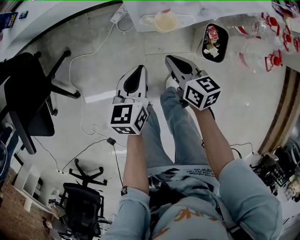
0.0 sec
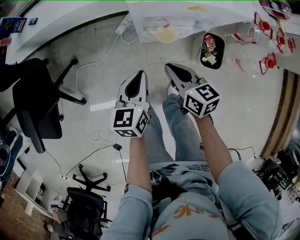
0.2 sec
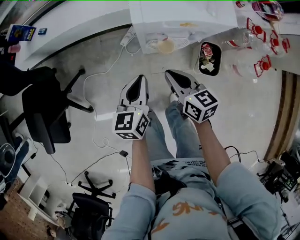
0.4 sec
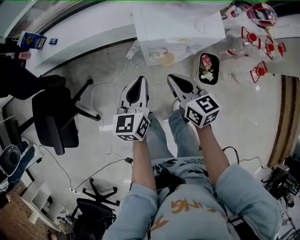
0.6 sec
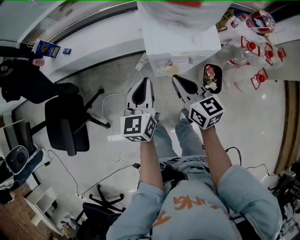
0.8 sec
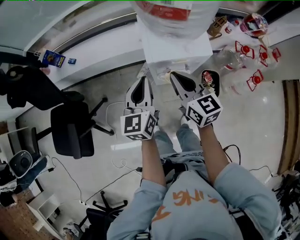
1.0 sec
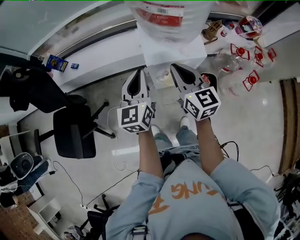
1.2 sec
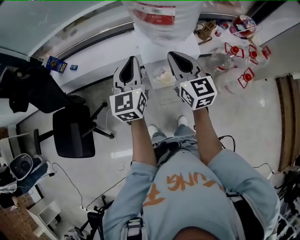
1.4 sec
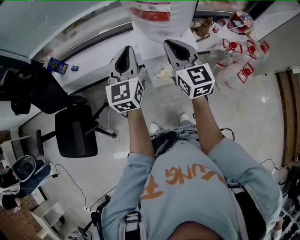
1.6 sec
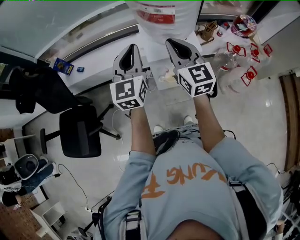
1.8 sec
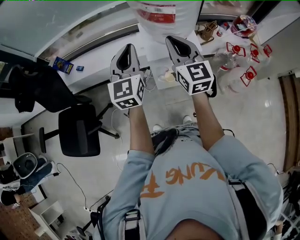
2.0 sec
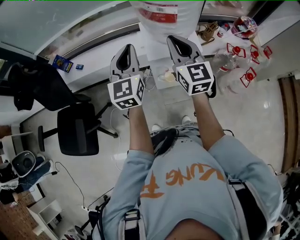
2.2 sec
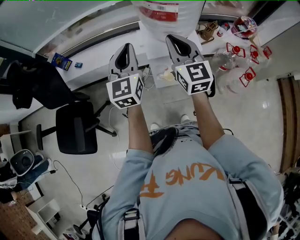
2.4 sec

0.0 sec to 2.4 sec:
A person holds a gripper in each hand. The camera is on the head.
0.0 sec to 1.2 sec: The two grippers go roughly 40 cm upward. The right gripper rotates approximately 30 degrees. The left gripper rotates about 30 degrees.
1.2 sec to 2.4 sec: Both grippers travel together upward, approximately 10 cm.

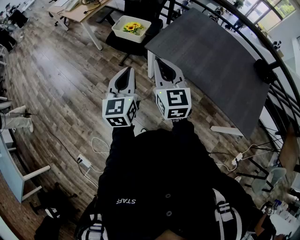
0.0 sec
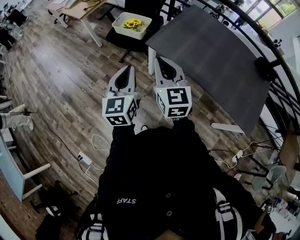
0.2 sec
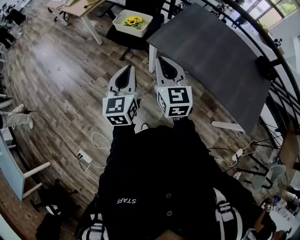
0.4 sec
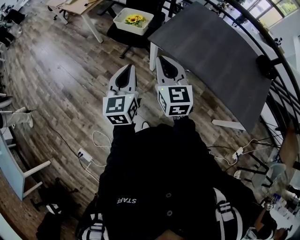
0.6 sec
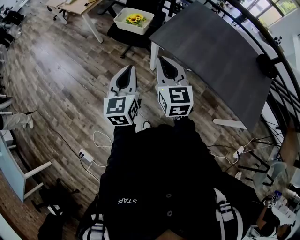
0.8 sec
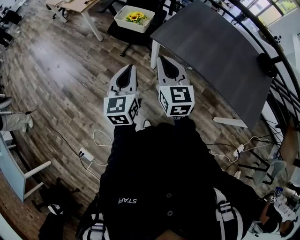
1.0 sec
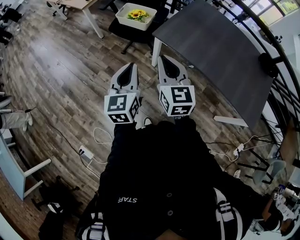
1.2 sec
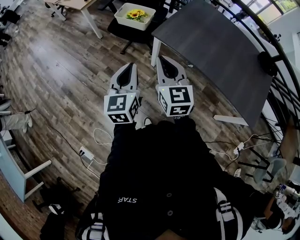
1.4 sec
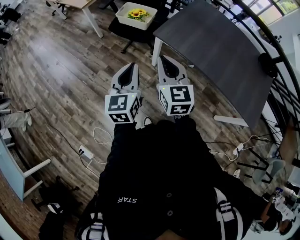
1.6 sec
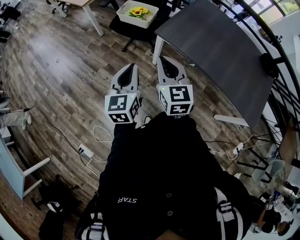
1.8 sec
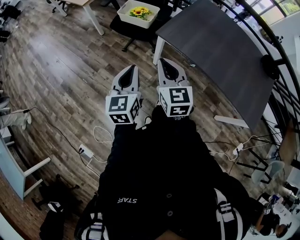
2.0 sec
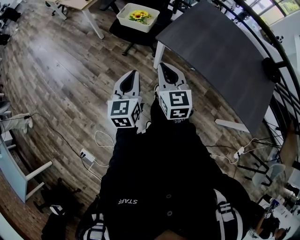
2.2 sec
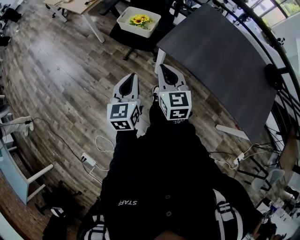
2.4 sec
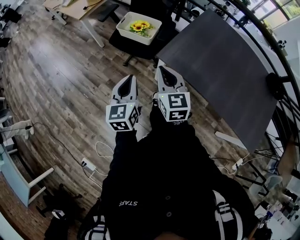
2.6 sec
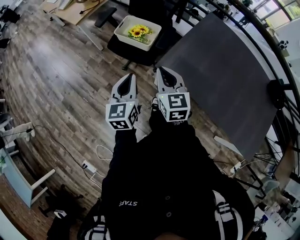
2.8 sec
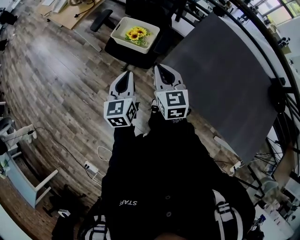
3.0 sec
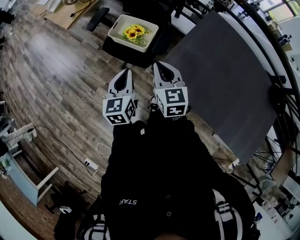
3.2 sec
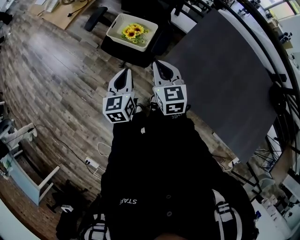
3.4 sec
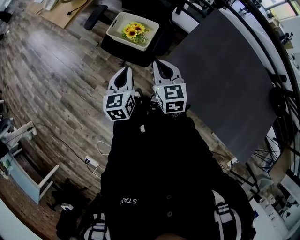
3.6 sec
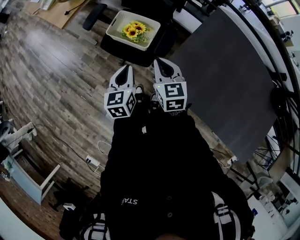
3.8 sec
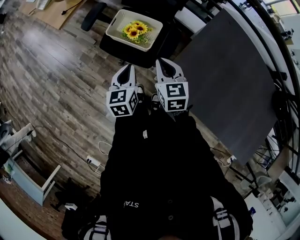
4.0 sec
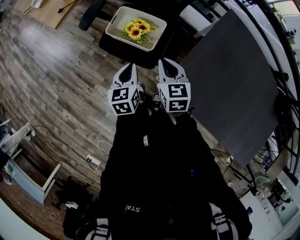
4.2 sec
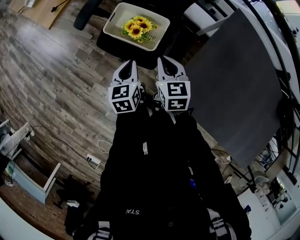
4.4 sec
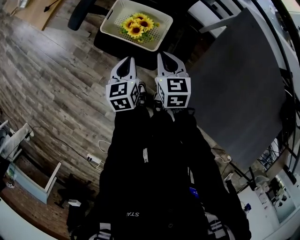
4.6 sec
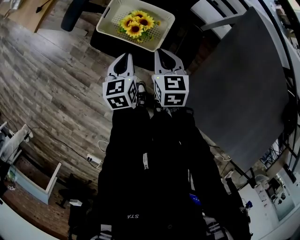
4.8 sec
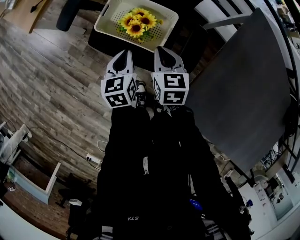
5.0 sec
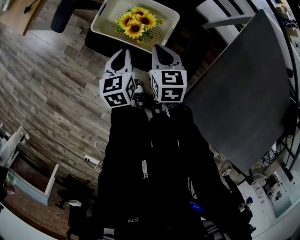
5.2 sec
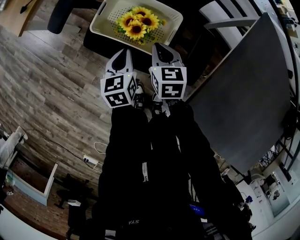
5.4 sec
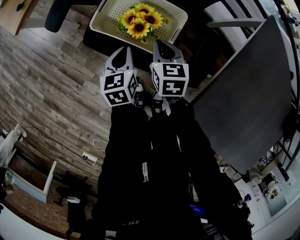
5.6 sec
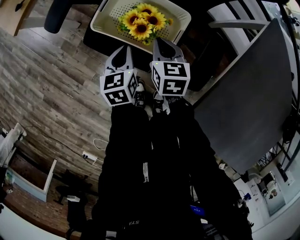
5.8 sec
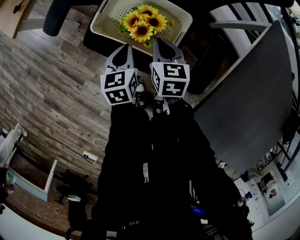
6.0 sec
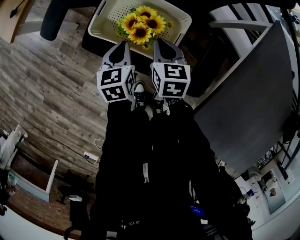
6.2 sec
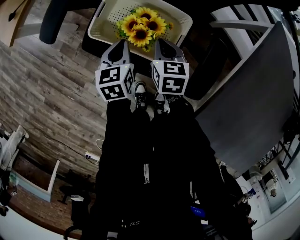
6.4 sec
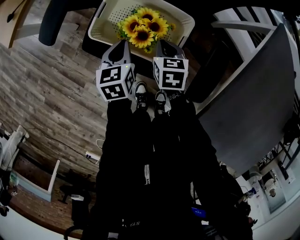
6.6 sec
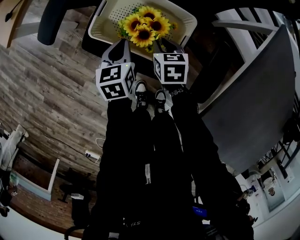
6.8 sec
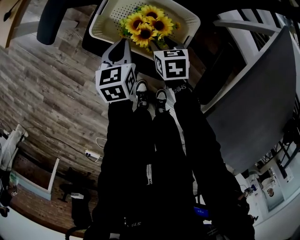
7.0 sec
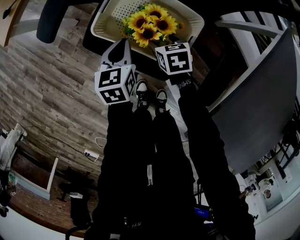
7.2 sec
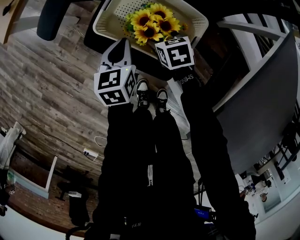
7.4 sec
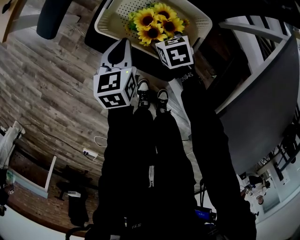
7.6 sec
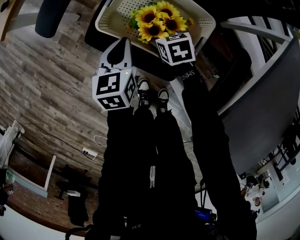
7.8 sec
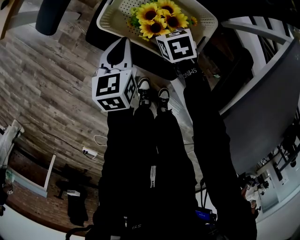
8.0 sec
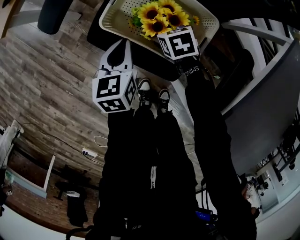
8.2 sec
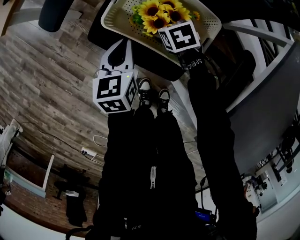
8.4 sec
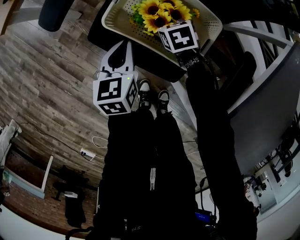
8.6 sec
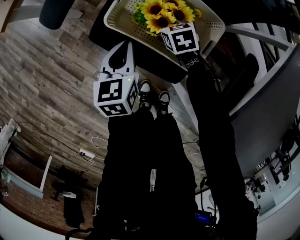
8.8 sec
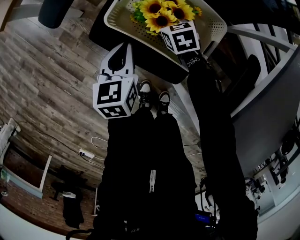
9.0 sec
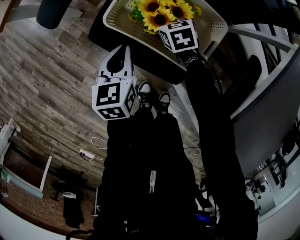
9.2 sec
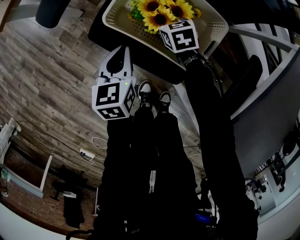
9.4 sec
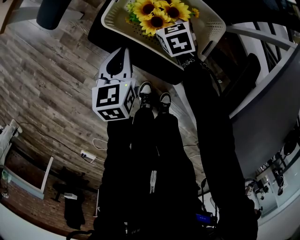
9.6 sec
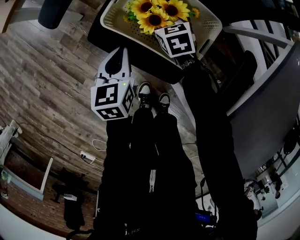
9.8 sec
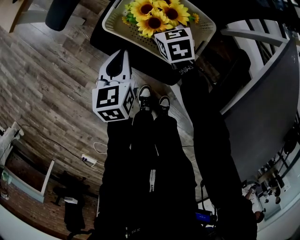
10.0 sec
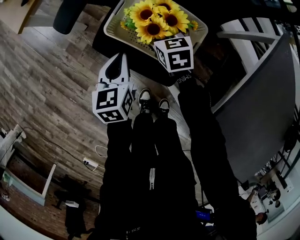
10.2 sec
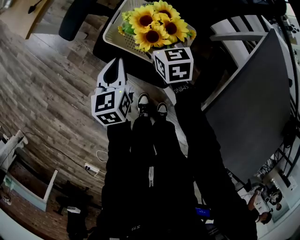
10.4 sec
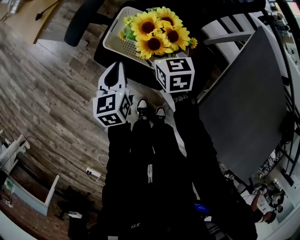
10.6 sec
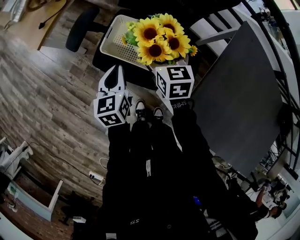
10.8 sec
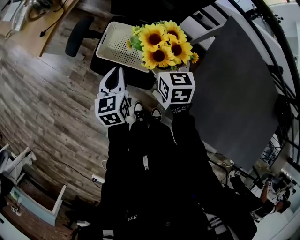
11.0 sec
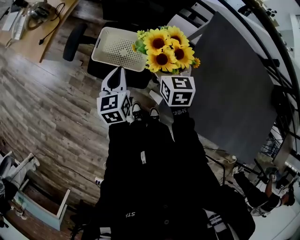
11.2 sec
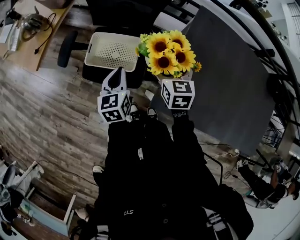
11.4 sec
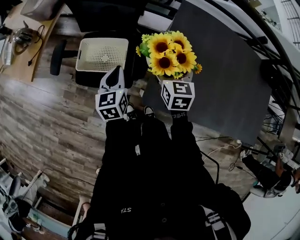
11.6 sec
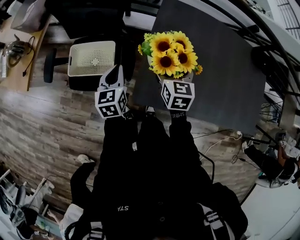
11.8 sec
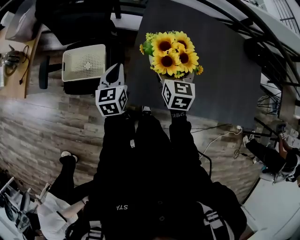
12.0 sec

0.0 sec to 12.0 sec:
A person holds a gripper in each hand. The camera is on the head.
0.0 sec to 1.6 sec: The two grippers go roughly 5 cm to the left.
1.6 sec to 3.0 sec: Both grippers travel together forward, roughly 35 cm.
3.0 sec to 4.4 sec: The grippers both shift forward and downward by some 30 cm.
4.4 sec to 6.0 sec: The two grippers go some 25 cm downward and forward.
6.0 sec to 7.6 sec: The right gripper moves downward, some 15 cm, rotates roughly 30 degrees, and opens its fingers, while the left gripper ends up approximately 5 cm from where it was.
7.6 sec to 9.0 sec: The right gripper shifts some 5 cm forward.
9.0 sec to 10.4 sec: The right gripper travels upward by roughly 20 cm, and changes its angle by about 20 degrees. Meanwhile the left gripper shifts approximately 10 cm upward.
10.4 sec to 12.0 sec: The right gripper changes place by approximately 60 cm, and swivels approximately 50 degrees; the left gripper moves about 40 cm, and changes its angle by approximately 30 degrees.

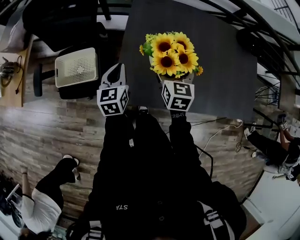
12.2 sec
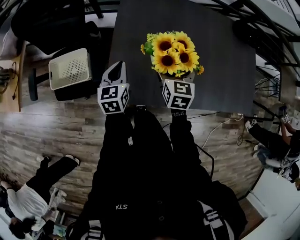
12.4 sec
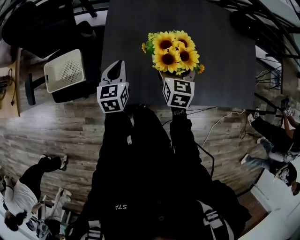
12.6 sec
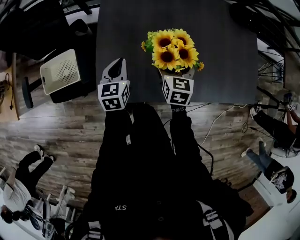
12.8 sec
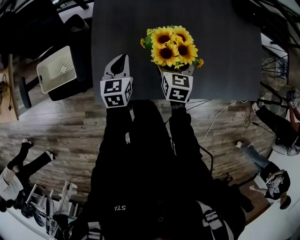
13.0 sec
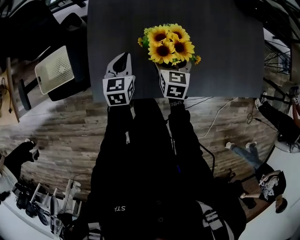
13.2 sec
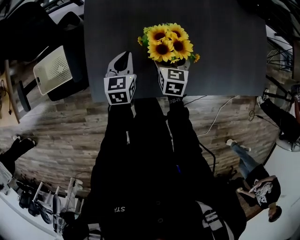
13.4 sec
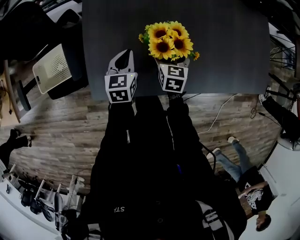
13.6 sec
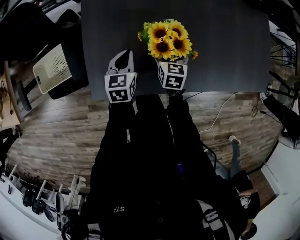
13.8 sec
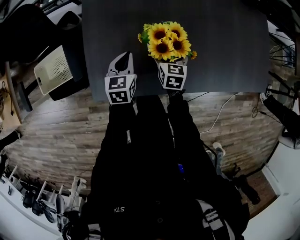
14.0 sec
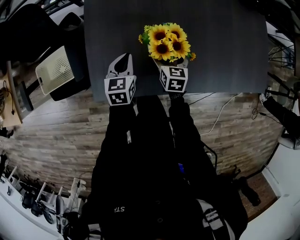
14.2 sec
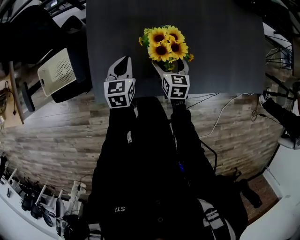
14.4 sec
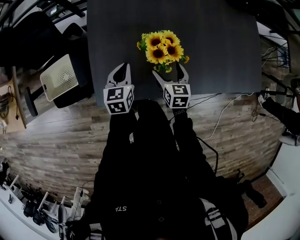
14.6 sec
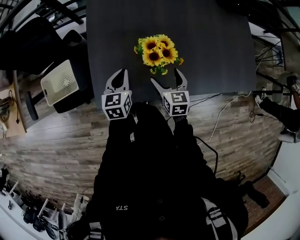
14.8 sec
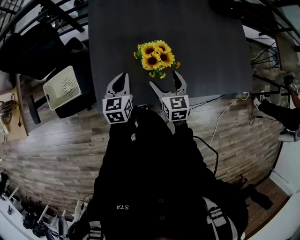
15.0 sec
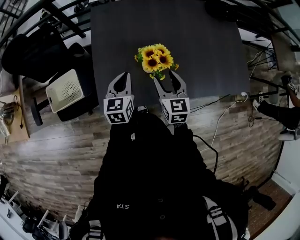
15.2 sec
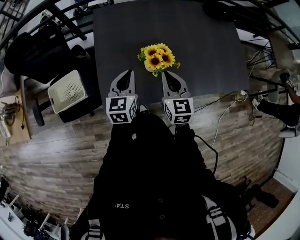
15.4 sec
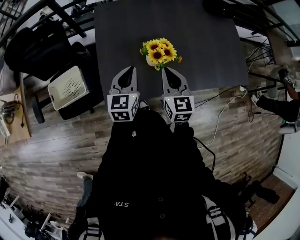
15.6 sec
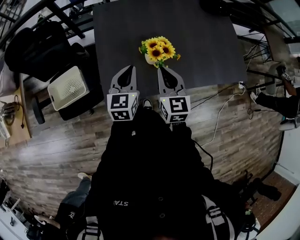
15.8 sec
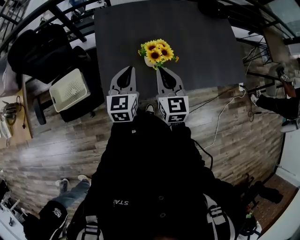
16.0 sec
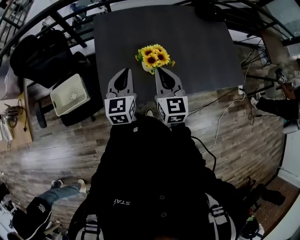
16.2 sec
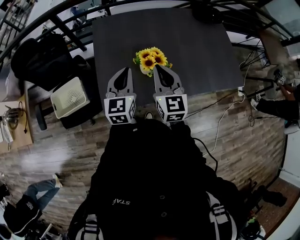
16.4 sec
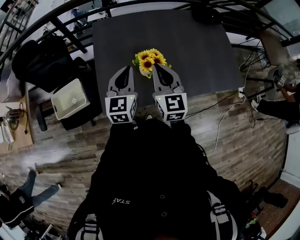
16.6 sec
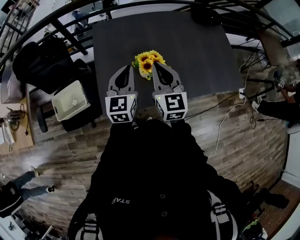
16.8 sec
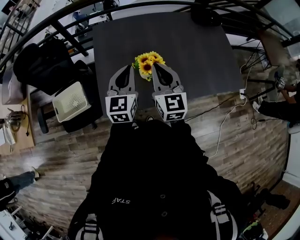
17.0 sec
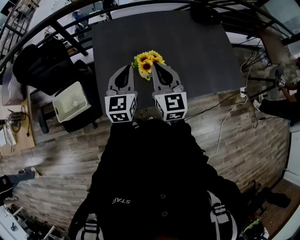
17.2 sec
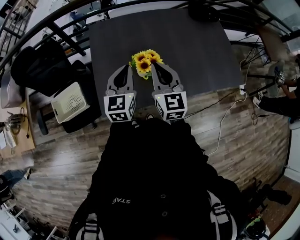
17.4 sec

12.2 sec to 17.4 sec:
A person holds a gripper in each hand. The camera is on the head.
12.2 sec to 14.0 sec: The left gripper is displaced to the right and downward by some 25 cm, and rotates roughly 20 degrees, while the right gripper shifts approximately 30 cm downward and to the right.
14.0 sec to 15.6 sec: The right gripper moves upward and backward, roughly 30 cm, swivels about 20 degrees, and closes up. Meanwhile the left gripper goes roughly 20 cm upward.
15.6 sec to 17.4 sec: The right gripper is displaced upward by roughly 10 cm. Meanwhile the left gripper is displaced upward and to the right by approximately 10 cm.

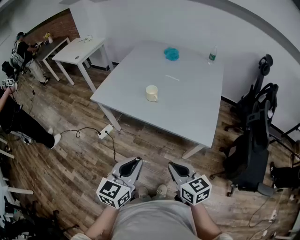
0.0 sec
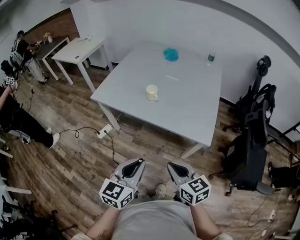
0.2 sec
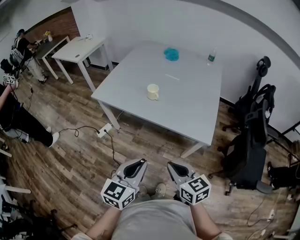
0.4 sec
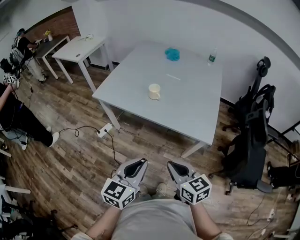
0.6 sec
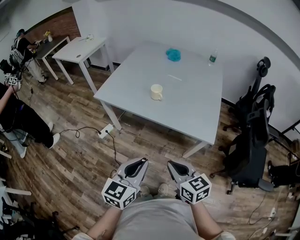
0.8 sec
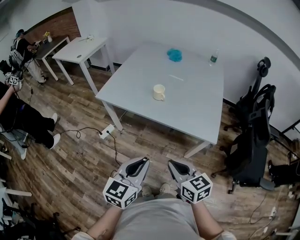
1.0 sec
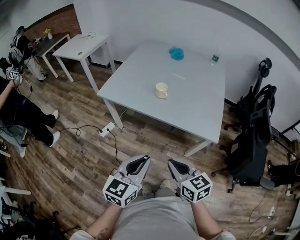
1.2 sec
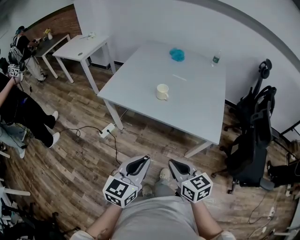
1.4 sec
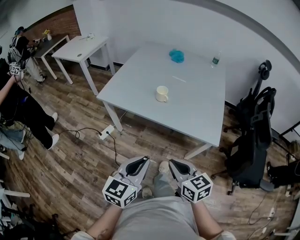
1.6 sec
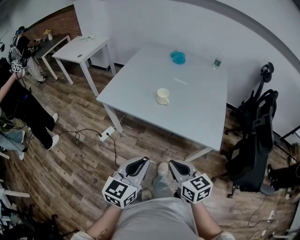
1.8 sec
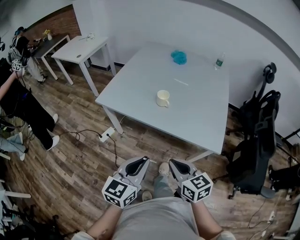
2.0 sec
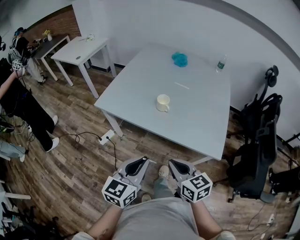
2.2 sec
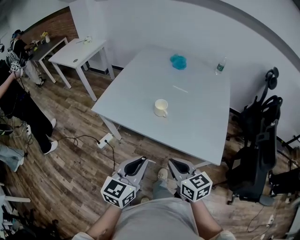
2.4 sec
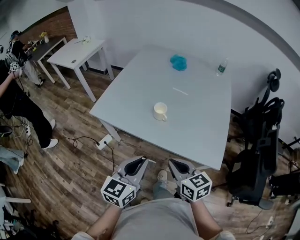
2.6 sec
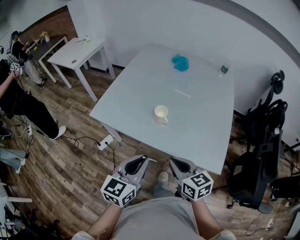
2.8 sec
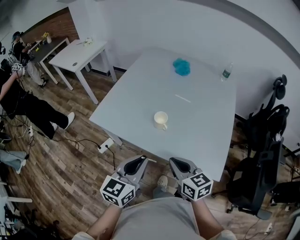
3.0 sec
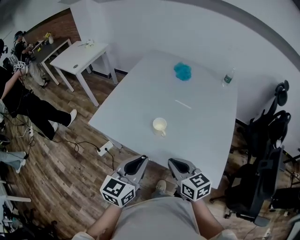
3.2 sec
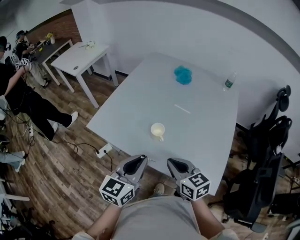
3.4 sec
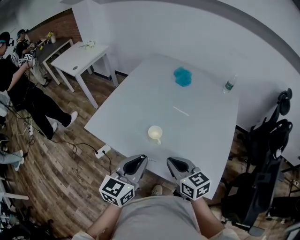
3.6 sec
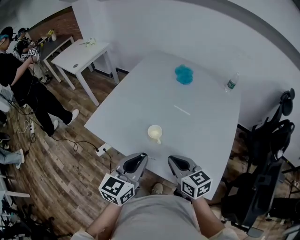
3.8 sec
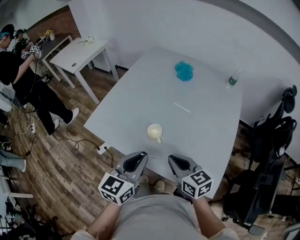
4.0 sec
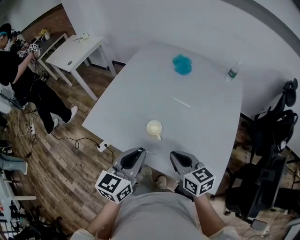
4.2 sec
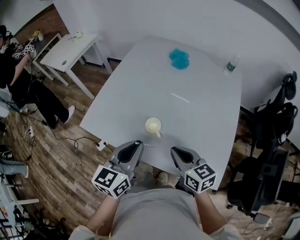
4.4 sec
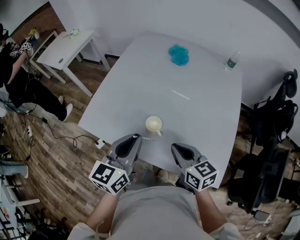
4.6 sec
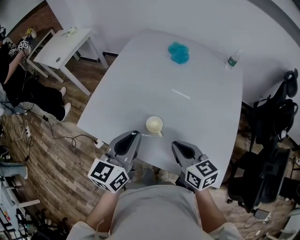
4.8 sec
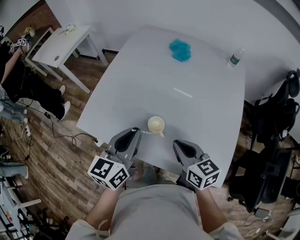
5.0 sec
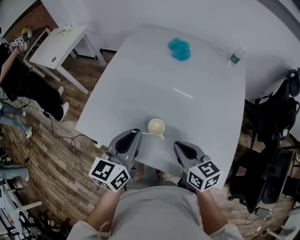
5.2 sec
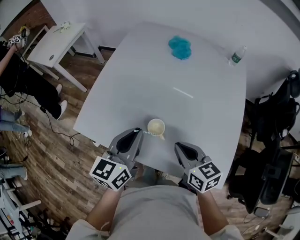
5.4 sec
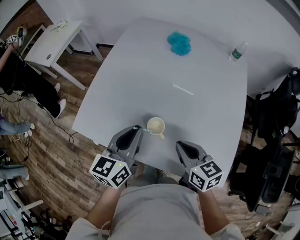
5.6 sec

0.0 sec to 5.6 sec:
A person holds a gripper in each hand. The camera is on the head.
0.0 sec to 1.4 sec: The grippers both shift to the left by roughly 10 cm.
1.4 sec to 2.8 sec: Both grippers travel together forward, roughly 20 cm.
2.8 sec to 4.2 sec: The right gripper is displaced forward and to the right by about 15 cm, while the left gripper goes approximately 15 cm forward.
4.2 sec to 5.6 sec: The left gripper is displaced forward by about 15 cm. The right gripper moves forward, approximately 5 cm.
